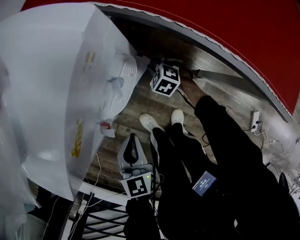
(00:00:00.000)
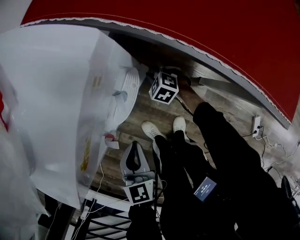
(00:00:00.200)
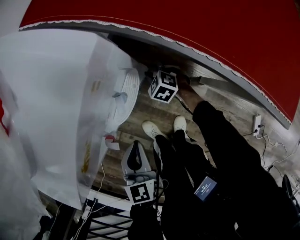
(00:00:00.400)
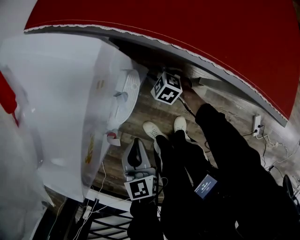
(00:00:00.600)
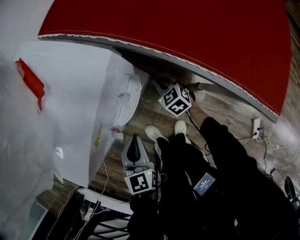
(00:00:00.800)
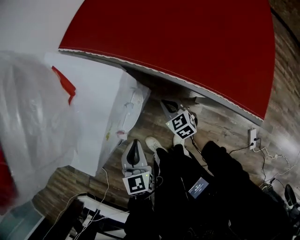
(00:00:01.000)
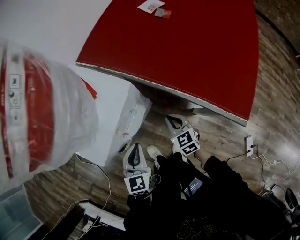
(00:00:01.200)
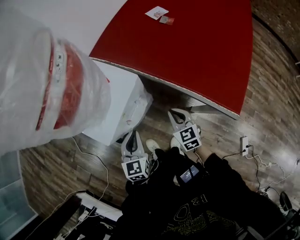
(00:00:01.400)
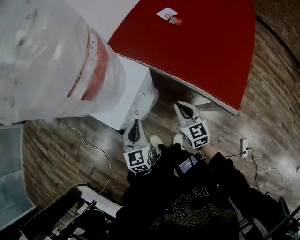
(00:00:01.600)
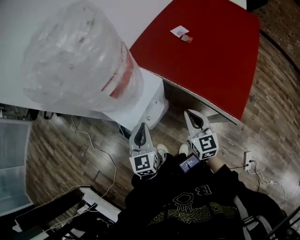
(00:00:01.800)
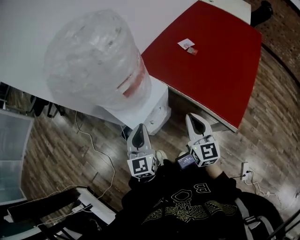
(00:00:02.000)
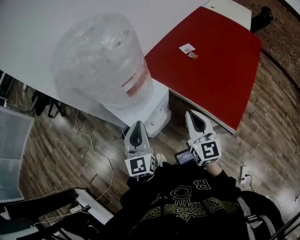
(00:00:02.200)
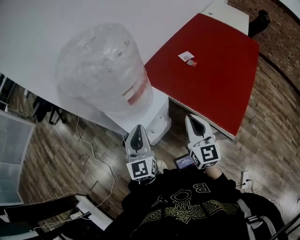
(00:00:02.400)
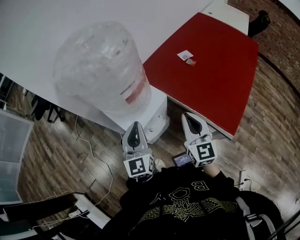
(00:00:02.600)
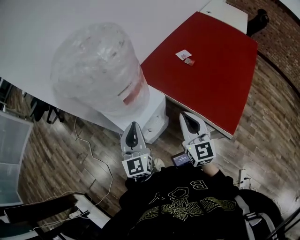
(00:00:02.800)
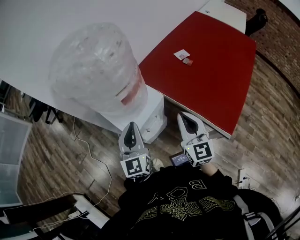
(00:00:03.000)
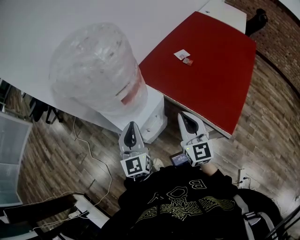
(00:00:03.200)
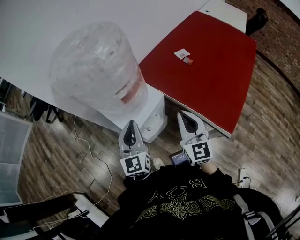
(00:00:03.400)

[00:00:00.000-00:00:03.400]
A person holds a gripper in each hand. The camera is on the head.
00:00:00.000 to 00:00:01.600: The left gripper moves upward, some 25 cm. The right gripper heads upward, covering some 40 cm, angles its fingers upward, by about 40 degrees, and closes its fingers.
00:00:01.600 to 00:00:03.400: Both grippers travel together upward, approximately 20 cm. The left gripper rotates some 20 degrees. The right gripper swivels about 20 degrees.

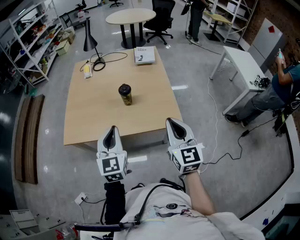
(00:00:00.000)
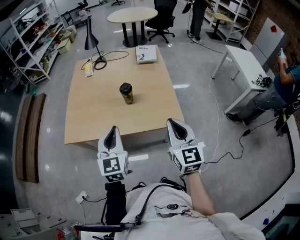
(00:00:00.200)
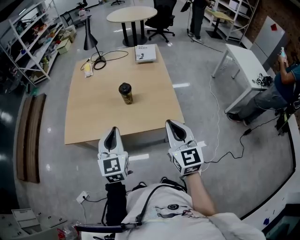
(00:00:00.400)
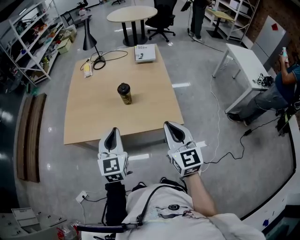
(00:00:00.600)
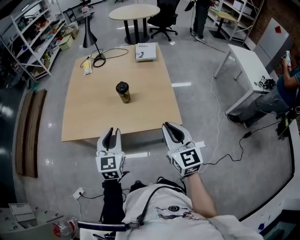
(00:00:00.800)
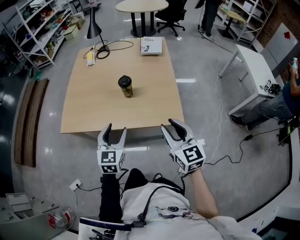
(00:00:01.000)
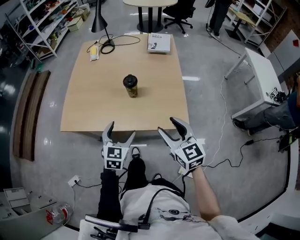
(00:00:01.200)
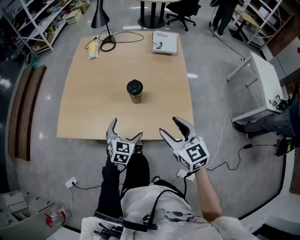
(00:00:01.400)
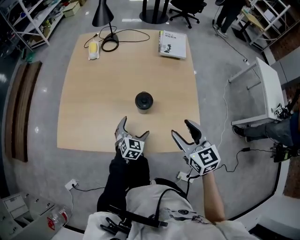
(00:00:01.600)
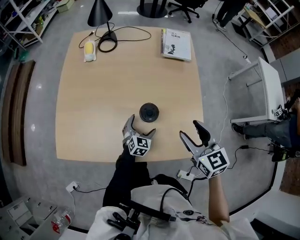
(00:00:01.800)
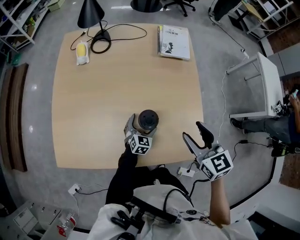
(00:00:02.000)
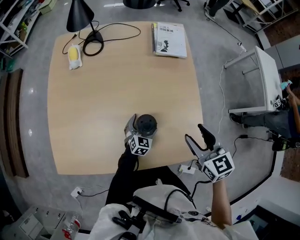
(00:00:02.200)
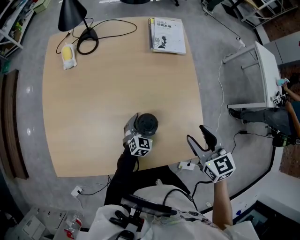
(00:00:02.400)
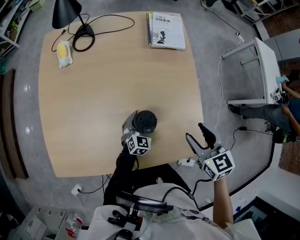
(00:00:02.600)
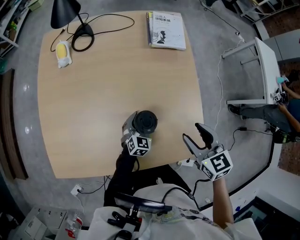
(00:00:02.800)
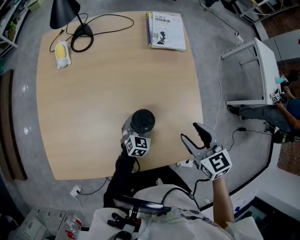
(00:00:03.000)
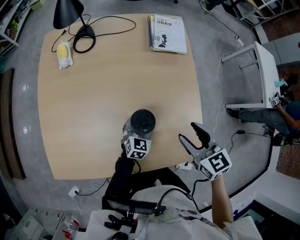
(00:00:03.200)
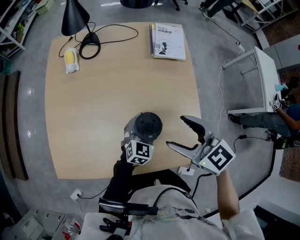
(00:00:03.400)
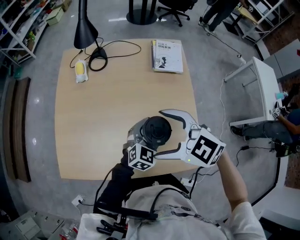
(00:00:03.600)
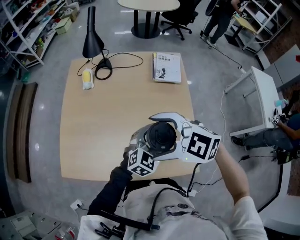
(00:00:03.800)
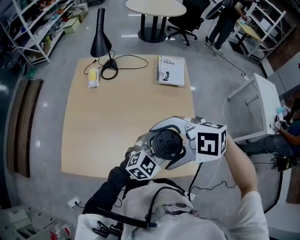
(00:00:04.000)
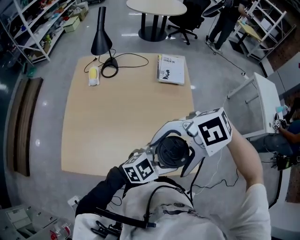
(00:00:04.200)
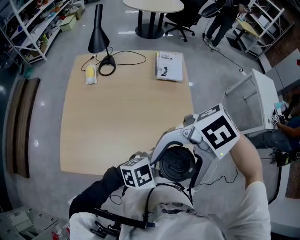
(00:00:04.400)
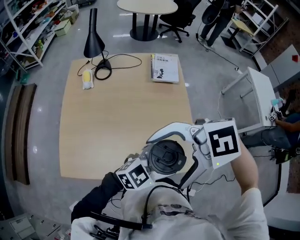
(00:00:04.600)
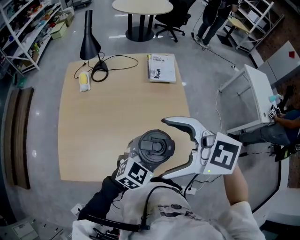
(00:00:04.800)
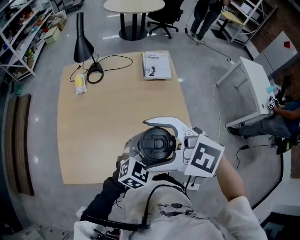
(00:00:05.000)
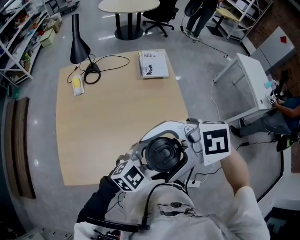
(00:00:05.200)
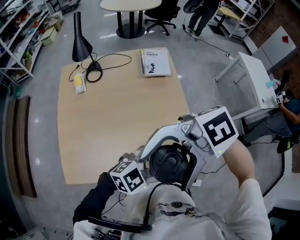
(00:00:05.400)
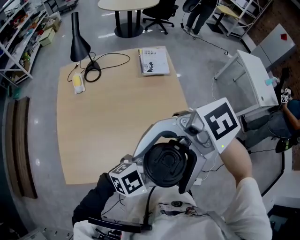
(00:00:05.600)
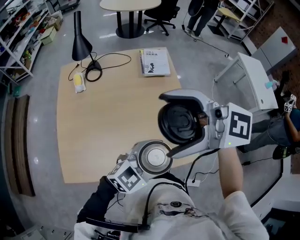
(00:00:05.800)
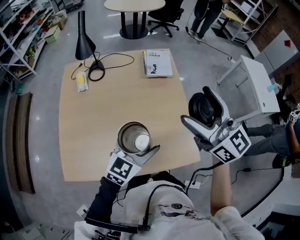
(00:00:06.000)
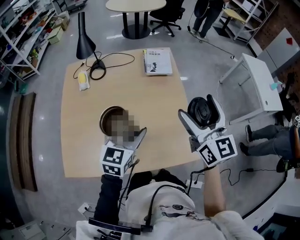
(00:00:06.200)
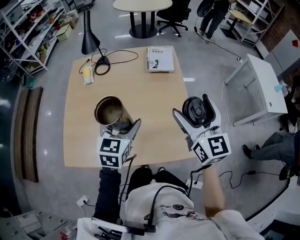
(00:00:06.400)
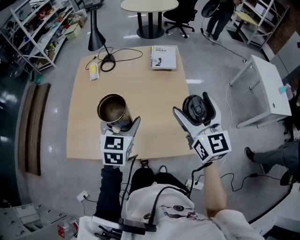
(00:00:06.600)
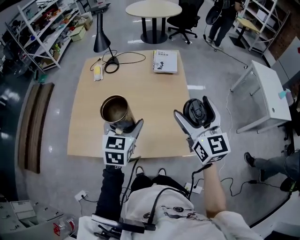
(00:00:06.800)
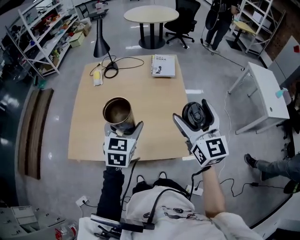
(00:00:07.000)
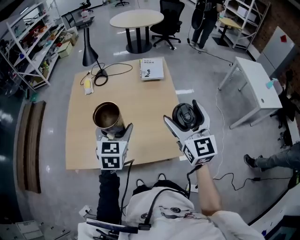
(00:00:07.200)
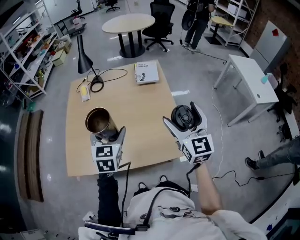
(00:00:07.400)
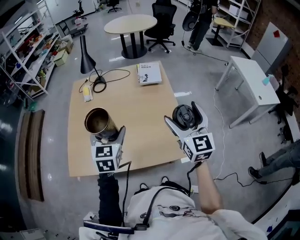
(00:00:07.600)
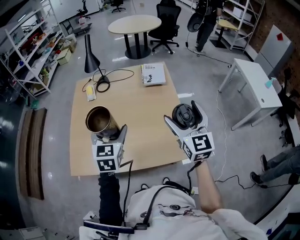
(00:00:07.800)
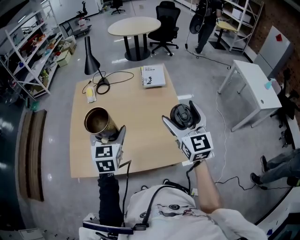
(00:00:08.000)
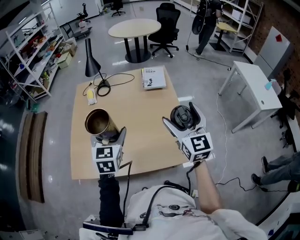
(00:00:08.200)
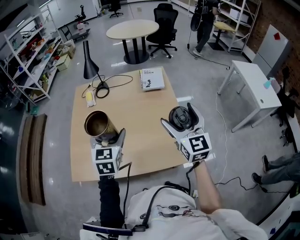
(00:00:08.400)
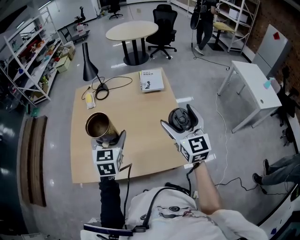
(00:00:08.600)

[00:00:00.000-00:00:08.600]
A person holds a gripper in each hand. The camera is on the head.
00:00:00.000 to 00:00:01.400: The right gripper moves forward and downward, roughly 15 cm, turns by roughly 30 degrees, and opens up. Meanwhile the left gripper heads downward and forward, covering about 30 cm, turns by some 30 degrees, and opens its fingers.
00:00:01.400 to 00:00:02.800: The left gripper moves forward and downward, approximately 25 cm, and closes its fingers; the right gripper travels forward by about 15 cm, and turns by approximately 20 degrees.
00:00:02.800 to 00:00:04.400: The two grippers go some 30 cm upward. The left gripper turns by roughly 60 degrees. The right gripper turns by roughly 120 degrees, and opens up.
00:00:04.400 to 00:00:05.800: The right gripper changes place by approximately 15 cm, and rotates some 70 degrees.
00:00:05.800 to 00:00:07.200: The left gripper shifts by some 10 cm, and rotates about 60 degrees. The right gripper ends up roughly 20 cm from where it was, and changes its angle by approximately 70 degrees.
00:00:07.200 to 00:00:08.600: The left gripper moves to the left, some 5 cm.

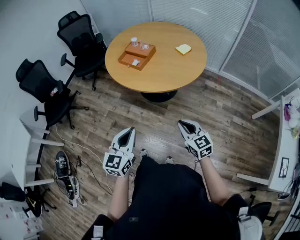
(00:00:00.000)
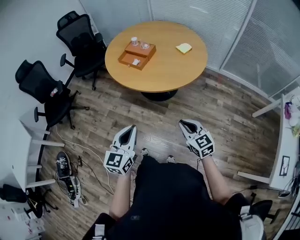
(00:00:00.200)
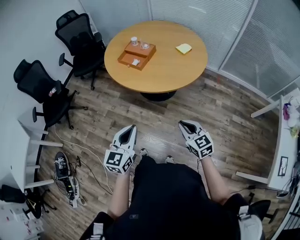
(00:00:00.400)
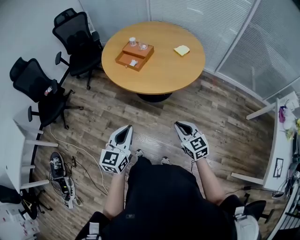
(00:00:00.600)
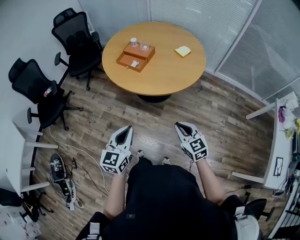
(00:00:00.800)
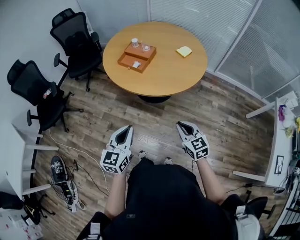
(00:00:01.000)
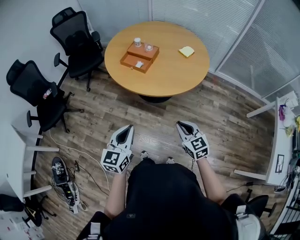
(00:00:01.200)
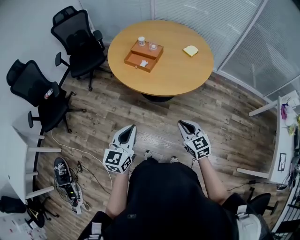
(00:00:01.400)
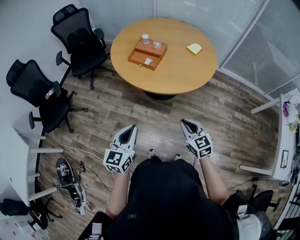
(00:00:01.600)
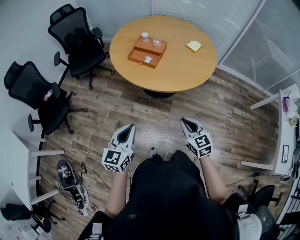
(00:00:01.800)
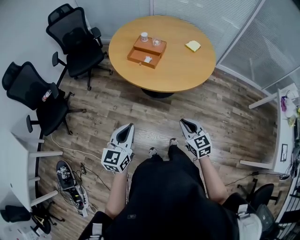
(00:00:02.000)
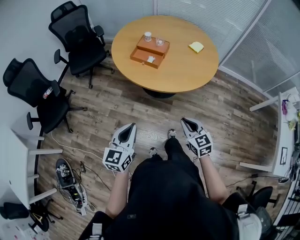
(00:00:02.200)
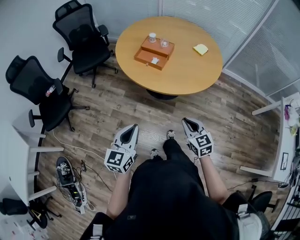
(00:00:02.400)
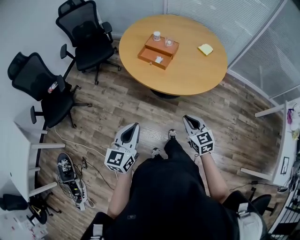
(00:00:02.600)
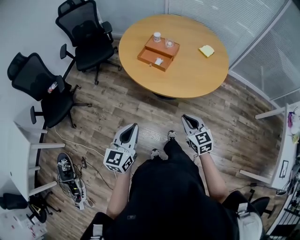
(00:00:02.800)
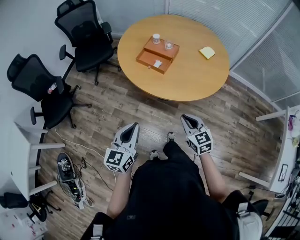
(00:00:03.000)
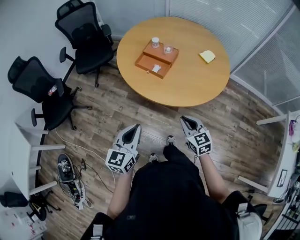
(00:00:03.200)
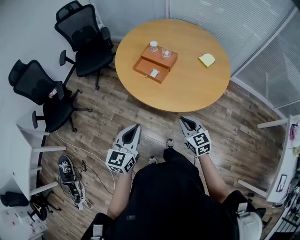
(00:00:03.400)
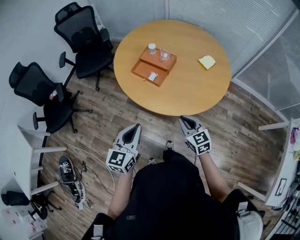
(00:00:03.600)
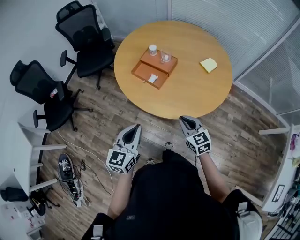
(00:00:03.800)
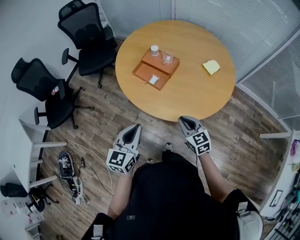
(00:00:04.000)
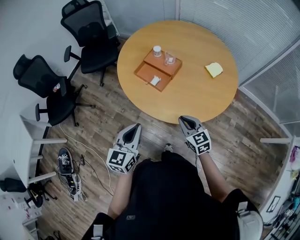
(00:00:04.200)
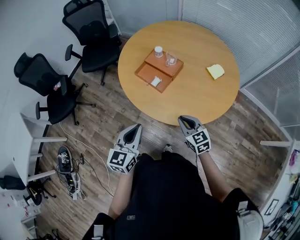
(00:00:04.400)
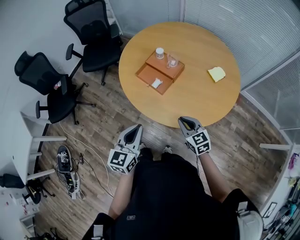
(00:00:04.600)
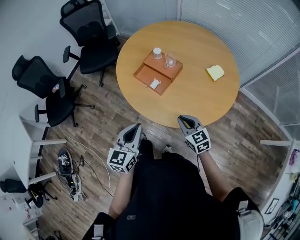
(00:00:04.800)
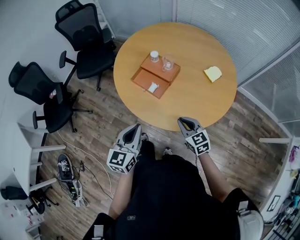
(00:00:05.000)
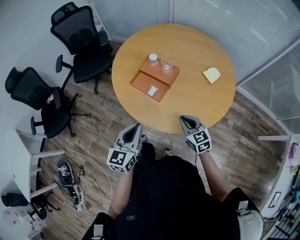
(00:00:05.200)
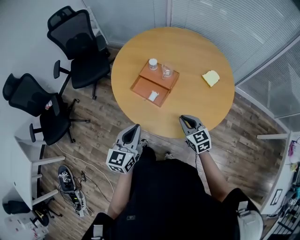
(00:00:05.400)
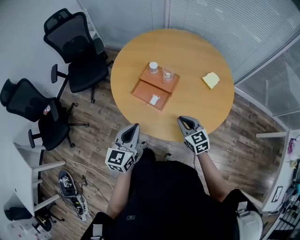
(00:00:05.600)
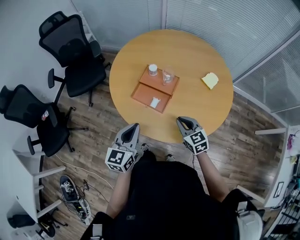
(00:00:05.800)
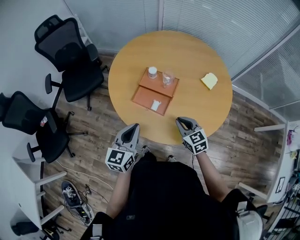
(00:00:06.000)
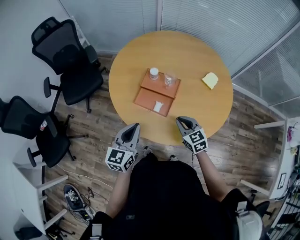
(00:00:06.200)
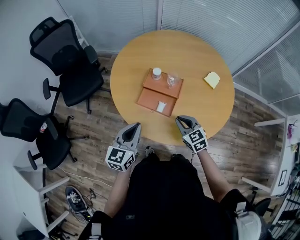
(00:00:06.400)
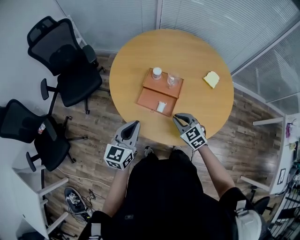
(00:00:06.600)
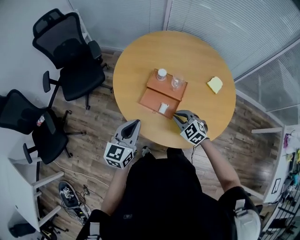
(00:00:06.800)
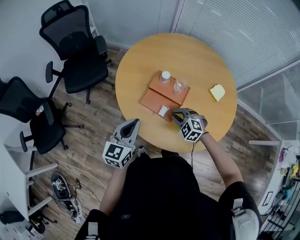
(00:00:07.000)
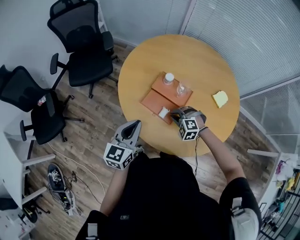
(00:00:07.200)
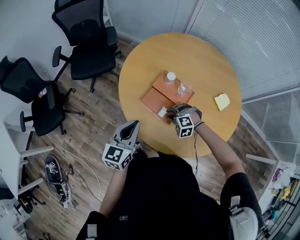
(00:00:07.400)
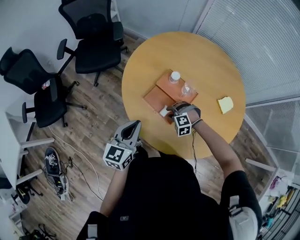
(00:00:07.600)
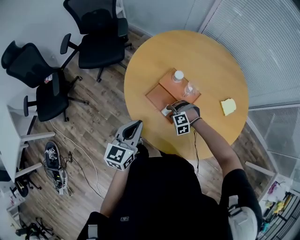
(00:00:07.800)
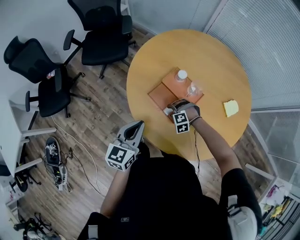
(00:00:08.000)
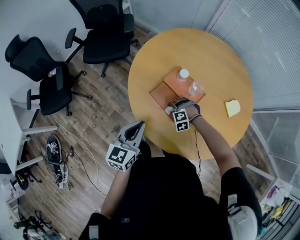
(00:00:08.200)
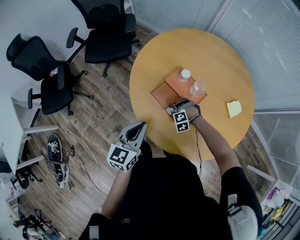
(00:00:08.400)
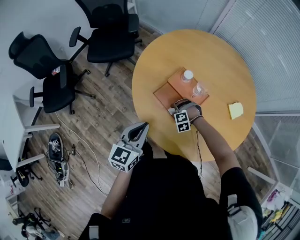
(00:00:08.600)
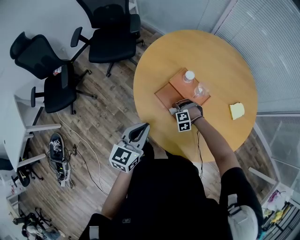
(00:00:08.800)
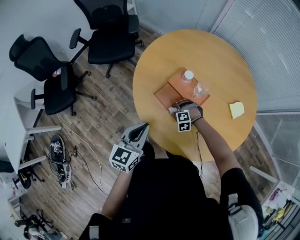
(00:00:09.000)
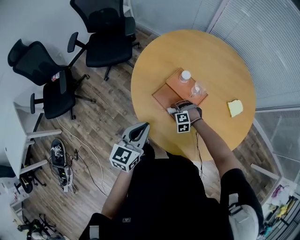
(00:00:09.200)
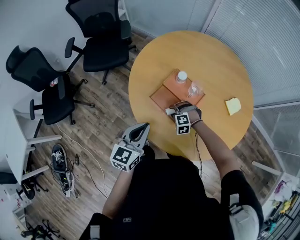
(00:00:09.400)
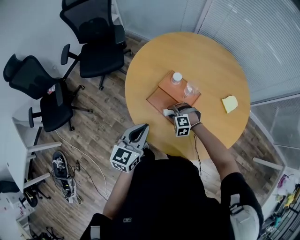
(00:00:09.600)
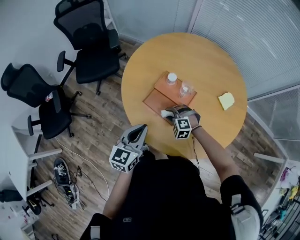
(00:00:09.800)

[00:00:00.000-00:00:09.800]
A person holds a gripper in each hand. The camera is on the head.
00:00:00.000 to 00:00:01.400: Both grippers move to the left and forward, some 15 cm.
00:00:01.400 to 00:00:02.800: The left gripper shifts roughly 10 cm to the left and forward. Meanwhile the right gripper goes about 10 cm forward and to the left.
00:00:02.800 to 00:00:04.200: Both grippers travel together forward and to the right, some 20 cm.
00:00:04.200 to 00:00:05.600: The two grippers go roughly 15 cm forward.
00:00:05.600 to 00:00:07.000: The left gripper heads forward and to the left, covering approximately 10 cm. Meanwhile the right gripper travels forward, to the left and downward by approximately 15 cm, and twists some 40 degrees counterclockwise, seen from behind.
00:00:07.000 to 00:00:08.400: The right gripper goes approximately 15 cm downward, rolls counterclockwise, seen from behind, by some 50 degrees, and opens its fingers.
00:00:08.400 to 00:00:09.800: The right gripper moves upward, roughly 10 cm, and turns by some 30 degrees.

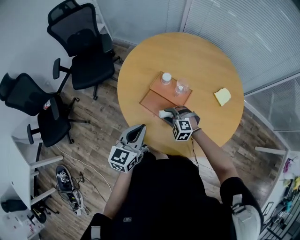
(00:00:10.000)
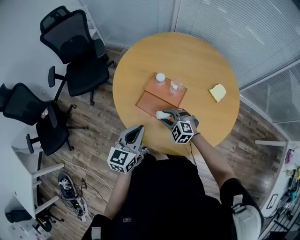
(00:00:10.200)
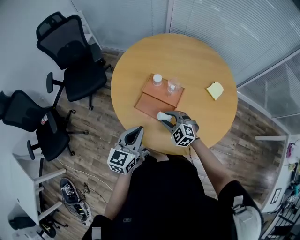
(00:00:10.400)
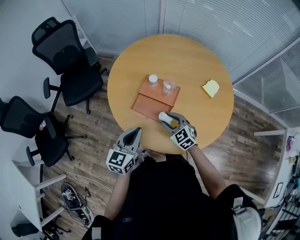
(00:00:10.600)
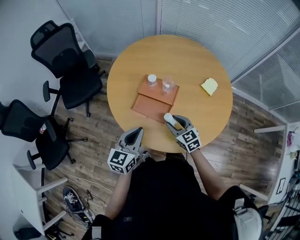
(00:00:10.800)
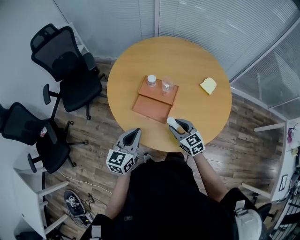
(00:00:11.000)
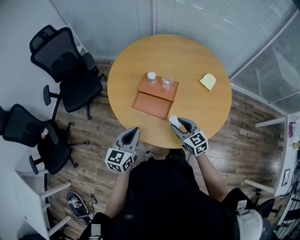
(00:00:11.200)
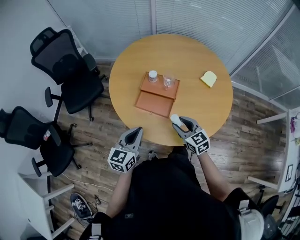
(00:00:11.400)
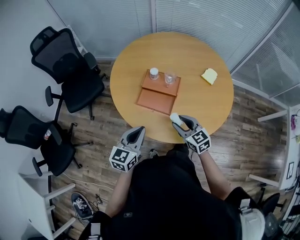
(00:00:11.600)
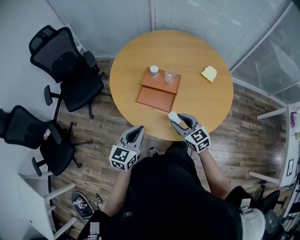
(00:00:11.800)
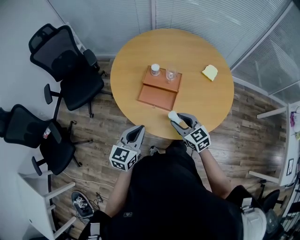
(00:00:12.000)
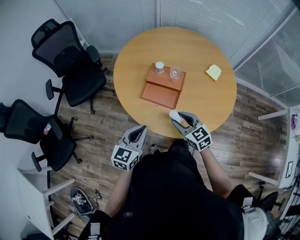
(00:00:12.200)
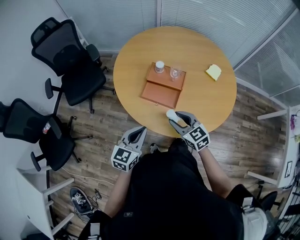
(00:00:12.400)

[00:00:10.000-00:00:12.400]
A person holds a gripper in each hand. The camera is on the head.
00:00:10.000 to 00:00:11.200: The right gripper goes some 15 cm upward, backward and to the right, and rotates around the line of its fingers by some 60 degrees, clockwise from behind.
00:00:11.200 to 00:00:12.400: The right gripper is displaced to the left by about 10 cm, while the left gripper moves roughly 5 cm.
